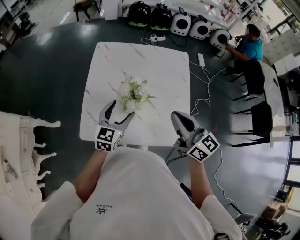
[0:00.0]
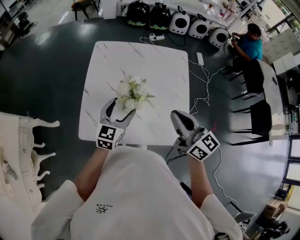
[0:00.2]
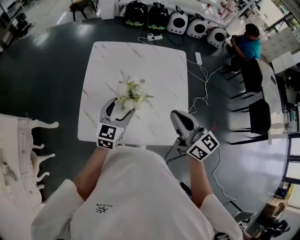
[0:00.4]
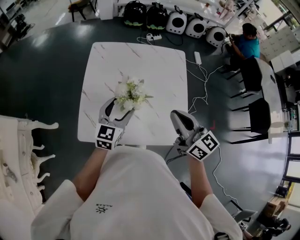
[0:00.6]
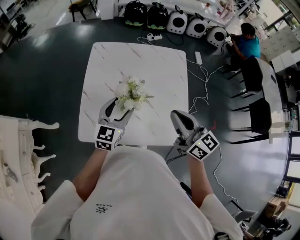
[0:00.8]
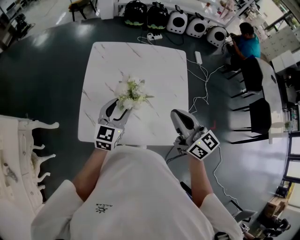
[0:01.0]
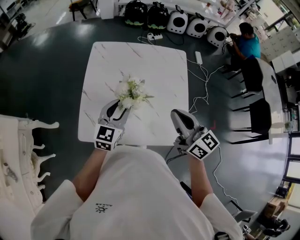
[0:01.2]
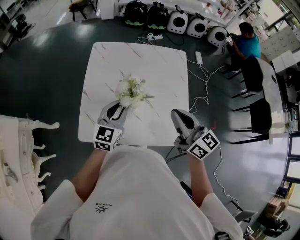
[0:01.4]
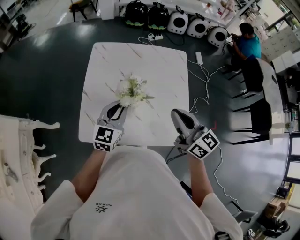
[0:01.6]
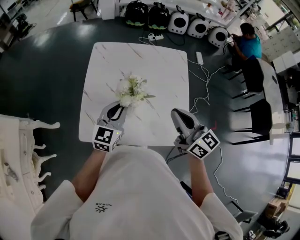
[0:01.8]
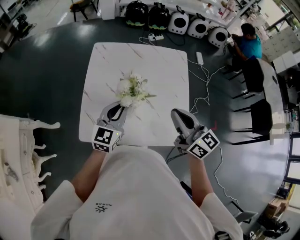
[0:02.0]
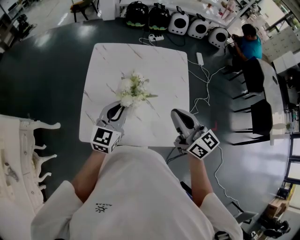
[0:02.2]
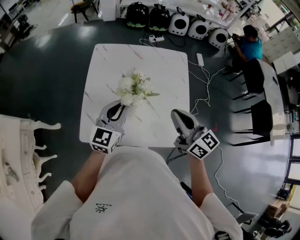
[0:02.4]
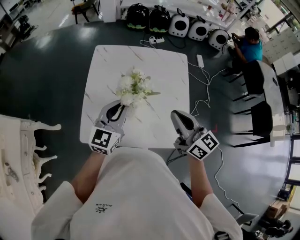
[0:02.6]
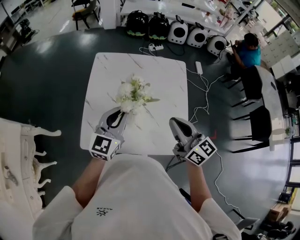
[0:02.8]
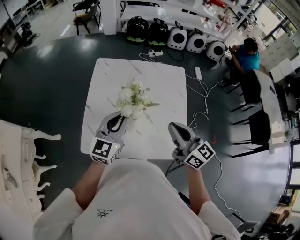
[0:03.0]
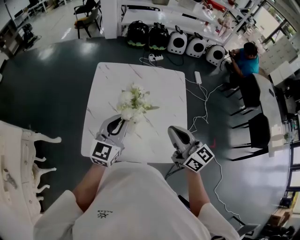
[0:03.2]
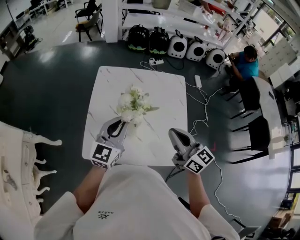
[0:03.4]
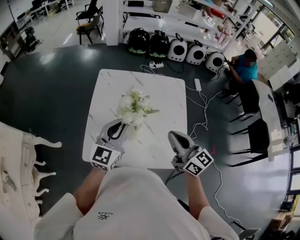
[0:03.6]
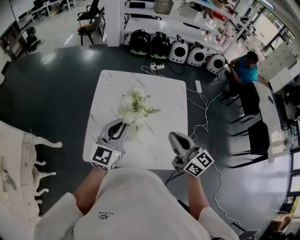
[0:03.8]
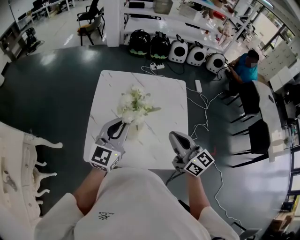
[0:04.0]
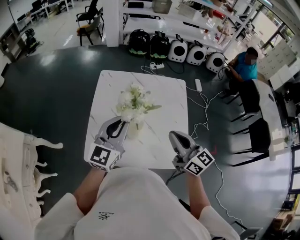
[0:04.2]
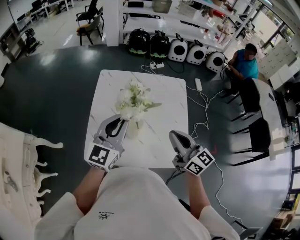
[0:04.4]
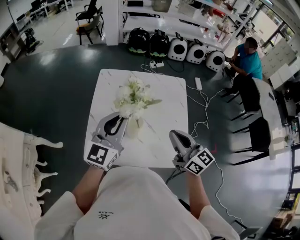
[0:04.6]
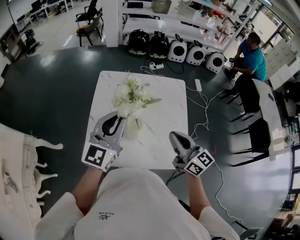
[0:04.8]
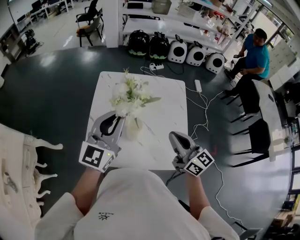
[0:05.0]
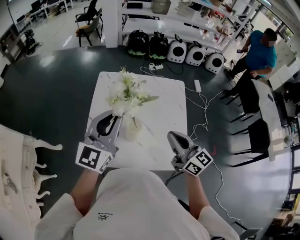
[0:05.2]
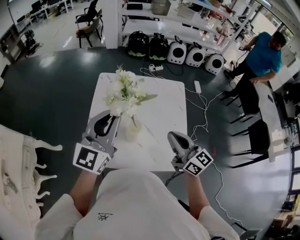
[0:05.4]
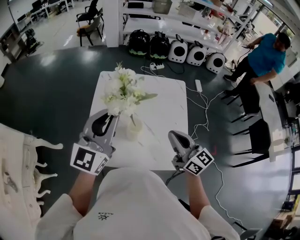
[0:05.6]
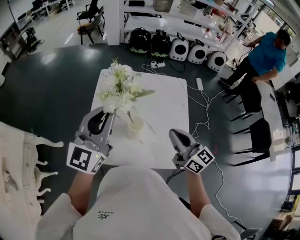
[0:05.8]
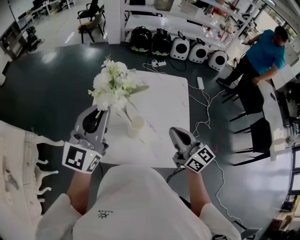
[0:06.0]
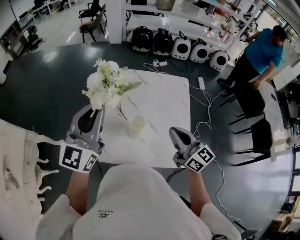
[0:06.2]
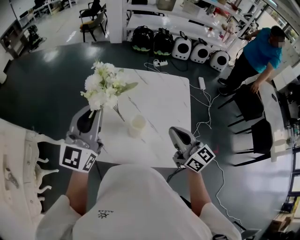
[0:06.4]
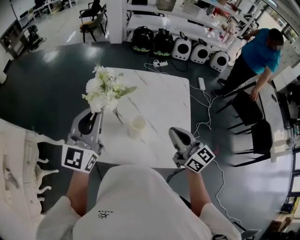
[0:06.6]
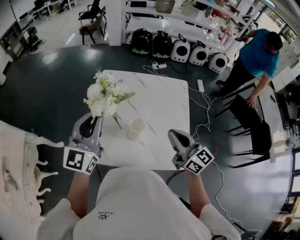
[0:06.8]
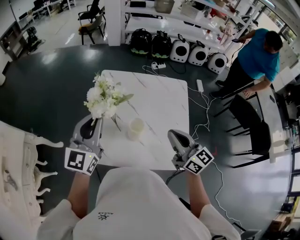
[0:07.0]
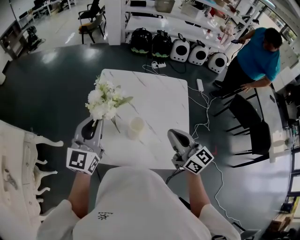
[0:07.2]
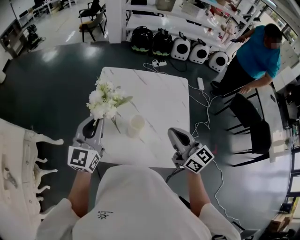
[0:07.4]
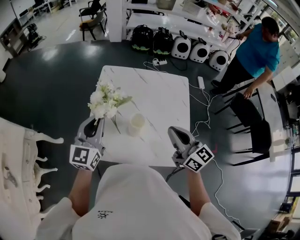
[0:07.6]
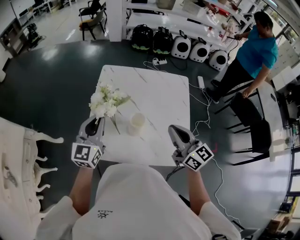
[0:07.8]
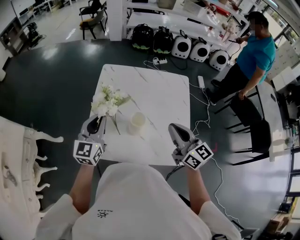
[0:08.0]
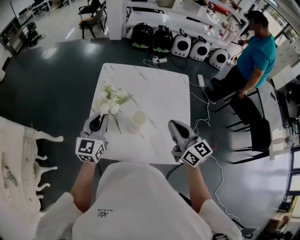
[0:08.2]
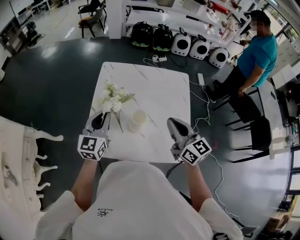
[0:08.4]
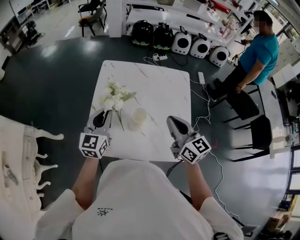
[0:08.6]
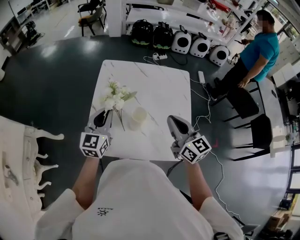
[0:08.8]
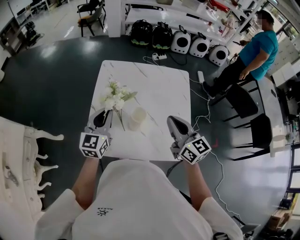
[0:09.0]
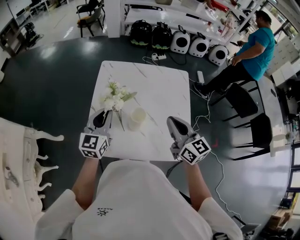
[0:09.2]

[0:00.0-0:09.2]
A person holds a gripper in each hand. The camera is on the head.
0:00.0 to 0:01.6: The left gripper closes up.
0:01.6 to 0:03.0: The left gripper moves upward, roughly 5 cm.
0:03.0 to 0:04.6: The left gripper heads upward, covering about 10 cm.
0:04.6 to 0:06.2: The left gripper shifts some 10 cm to the left and upward.
0:06.2 to 0:07.6: The left gripper is displaced downward by about 10 cm.
0:07.6 to 0:09.2: The left gripper travels downward by some 5 cm.

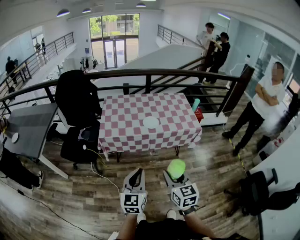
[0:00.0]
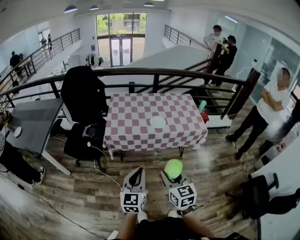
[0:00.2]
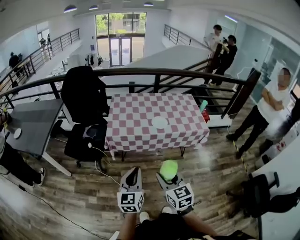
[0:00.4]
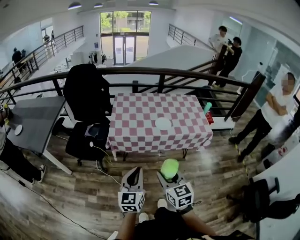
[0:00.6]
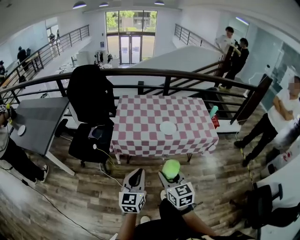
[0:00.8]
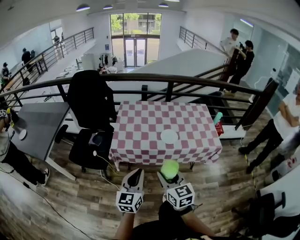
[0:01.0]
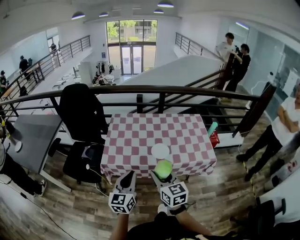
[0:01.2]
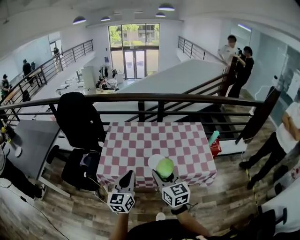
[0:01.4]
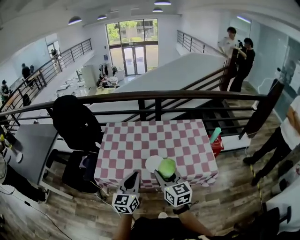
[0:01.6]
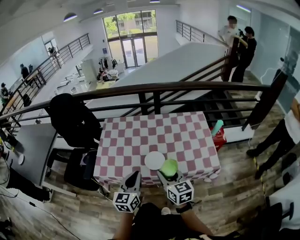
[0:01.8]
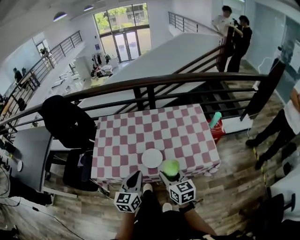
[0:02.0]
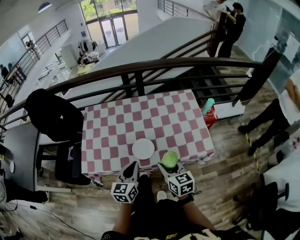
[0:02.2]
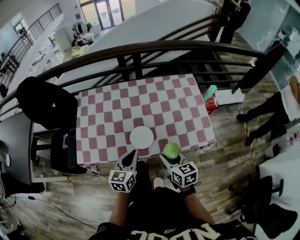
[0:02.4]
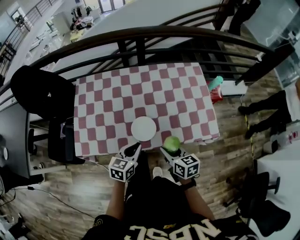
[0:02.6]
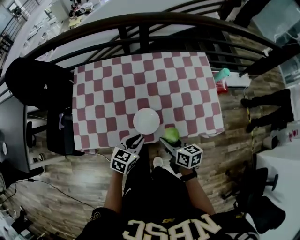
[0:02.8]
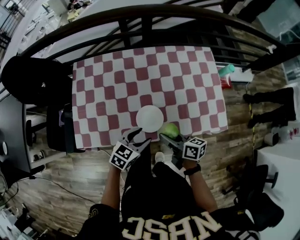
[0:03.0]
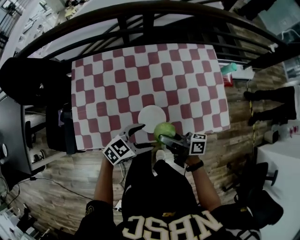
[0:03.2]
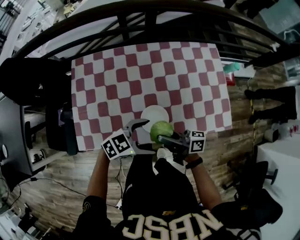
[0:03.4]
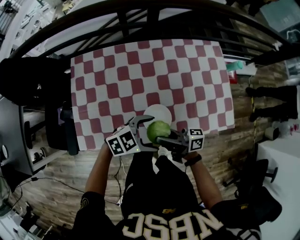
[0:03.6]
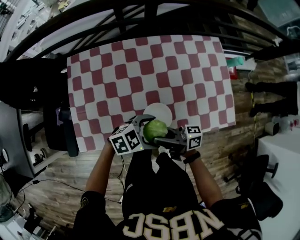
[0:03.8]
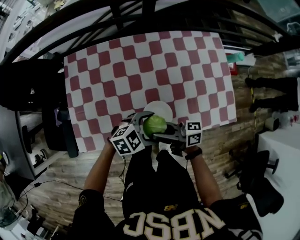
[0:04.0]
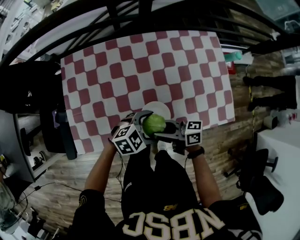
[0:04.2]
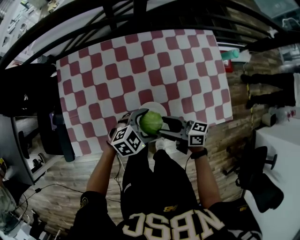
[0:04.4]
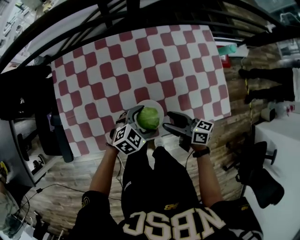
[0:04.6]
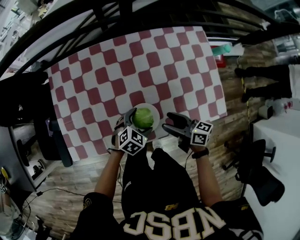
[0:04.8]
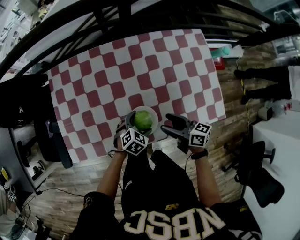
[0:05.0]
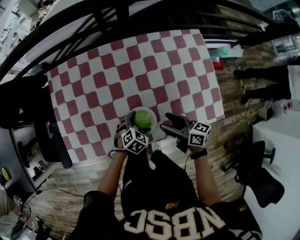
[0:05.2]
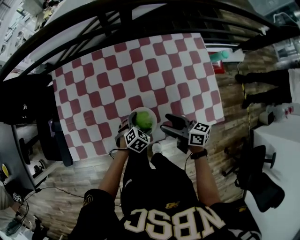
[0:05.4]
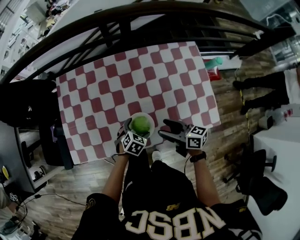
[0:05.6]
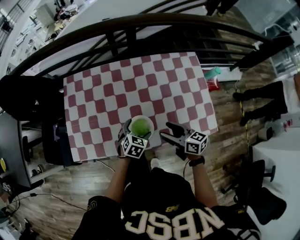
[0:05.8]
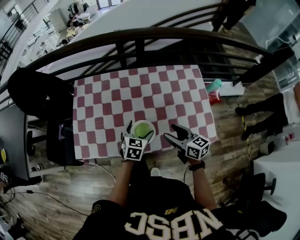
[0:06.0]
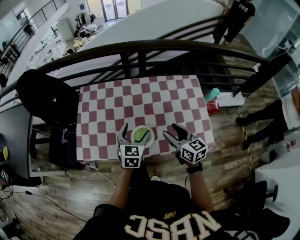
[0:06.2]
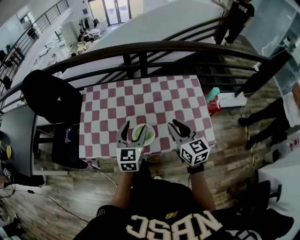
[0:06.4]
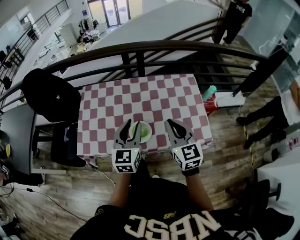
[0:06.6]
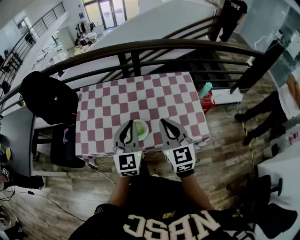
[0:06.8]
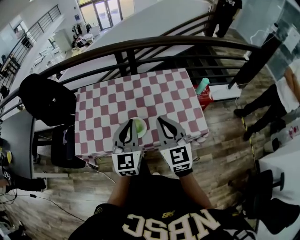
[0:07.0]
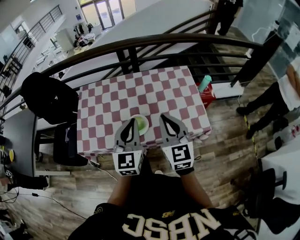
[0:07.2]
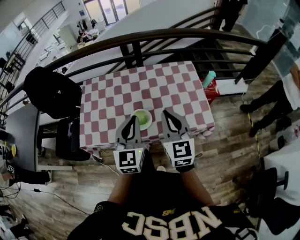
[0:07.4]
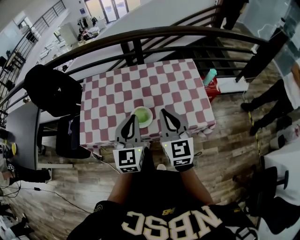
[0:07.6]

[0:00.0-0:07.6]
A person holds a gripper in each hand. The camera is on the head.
0:00.0 to 0:01.6: The grippers both shift forward by some 35 cm.
0:01.6 to 0:03.0: Both grippers move downward and forward, roughly 25 cm. The right gripper rotates around the line of its fingers by approximately 40 degrees, clockwise from behind. Meanwhile the left gripper tilts its fingers roughly 30 degrees downward, and opens up.
0:03.0 to 0:04.6: The left gripper moves some 10 cm, turns by about 30 degrees, and opens up; the right gripper opens its fingers.
0:04.6 to 0:06.0: The right gripper moves upward and to the right, roughly 10 cm, and changes its angle by roughly 20 degrees. The left gripper shifts about 5 cm upward, and changes its angle by approximately 40 degrees.
0:06.0 to 0:07.6: The grippers both shift upward and backward by some 25 cm. The left gripper tilts its fingers about 30 degrees upward, and closes its fingers, while the right gripper changes its angle by some 40 degrees, and closes.

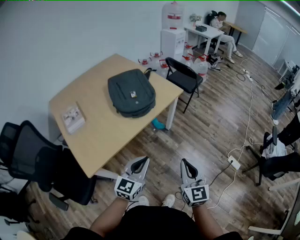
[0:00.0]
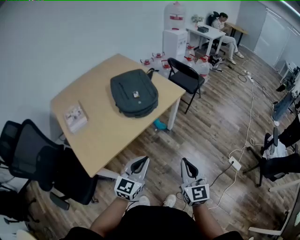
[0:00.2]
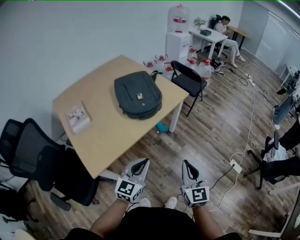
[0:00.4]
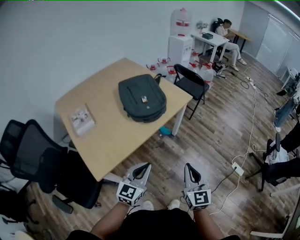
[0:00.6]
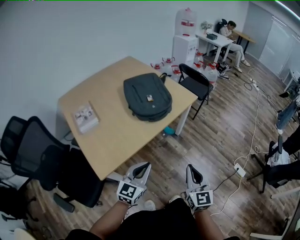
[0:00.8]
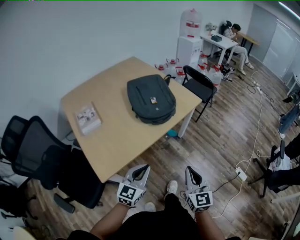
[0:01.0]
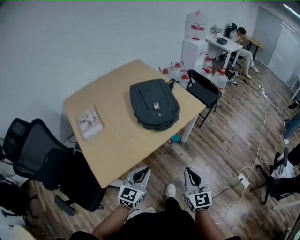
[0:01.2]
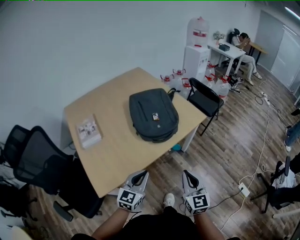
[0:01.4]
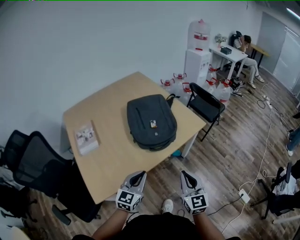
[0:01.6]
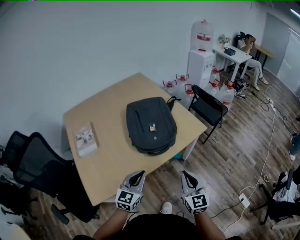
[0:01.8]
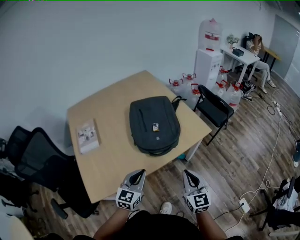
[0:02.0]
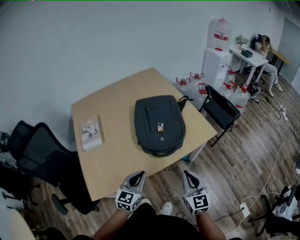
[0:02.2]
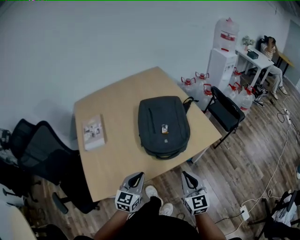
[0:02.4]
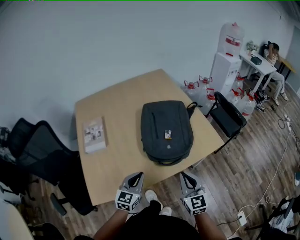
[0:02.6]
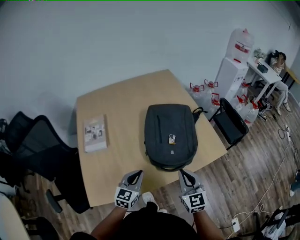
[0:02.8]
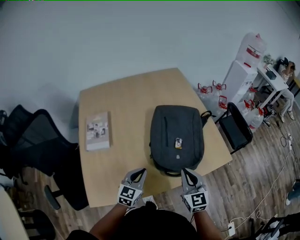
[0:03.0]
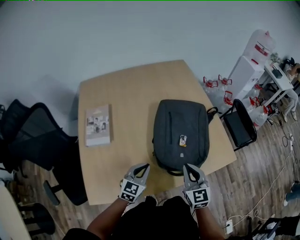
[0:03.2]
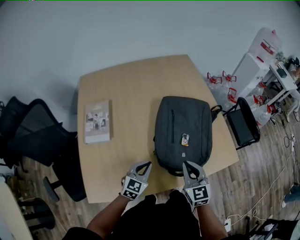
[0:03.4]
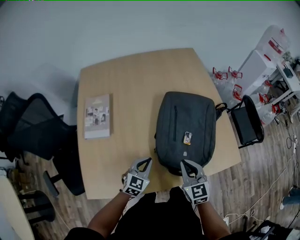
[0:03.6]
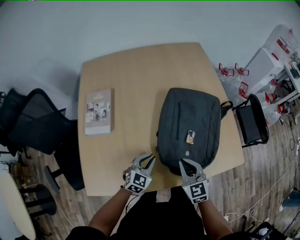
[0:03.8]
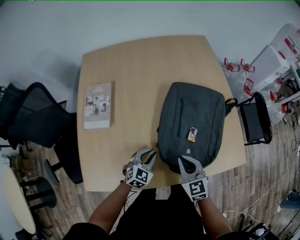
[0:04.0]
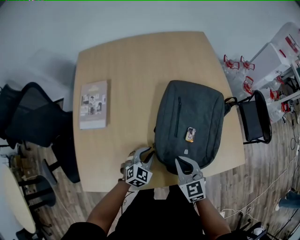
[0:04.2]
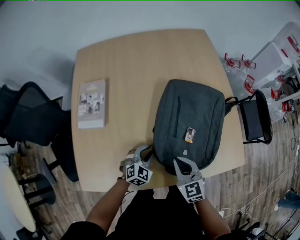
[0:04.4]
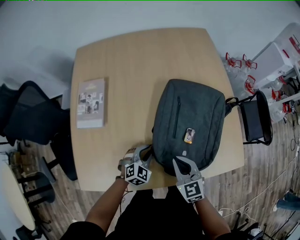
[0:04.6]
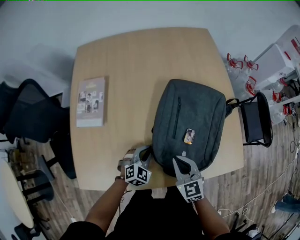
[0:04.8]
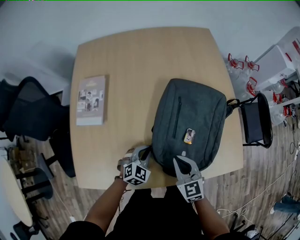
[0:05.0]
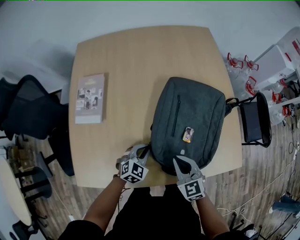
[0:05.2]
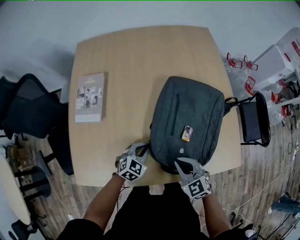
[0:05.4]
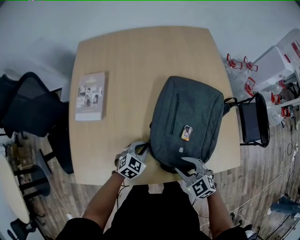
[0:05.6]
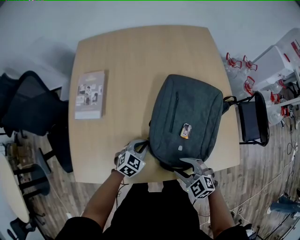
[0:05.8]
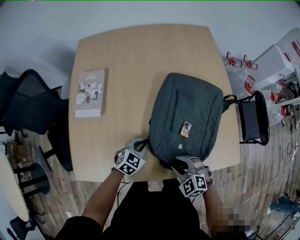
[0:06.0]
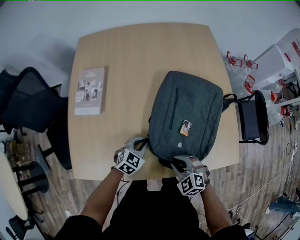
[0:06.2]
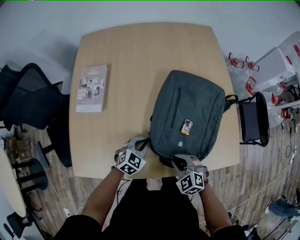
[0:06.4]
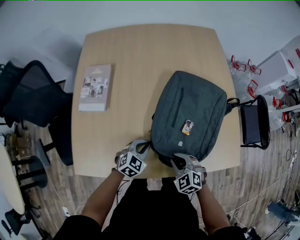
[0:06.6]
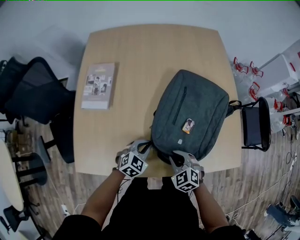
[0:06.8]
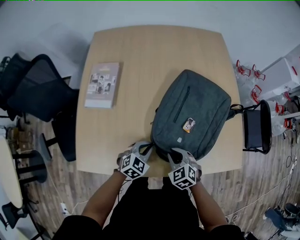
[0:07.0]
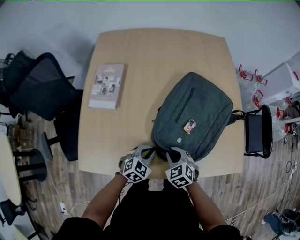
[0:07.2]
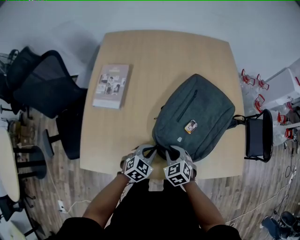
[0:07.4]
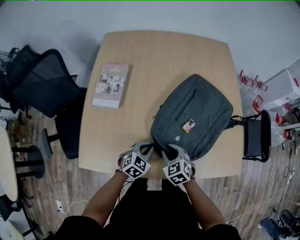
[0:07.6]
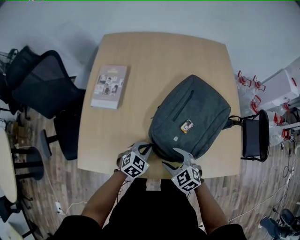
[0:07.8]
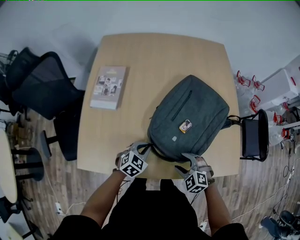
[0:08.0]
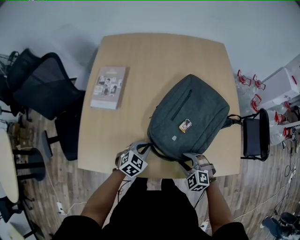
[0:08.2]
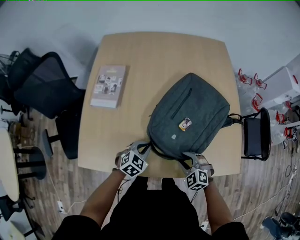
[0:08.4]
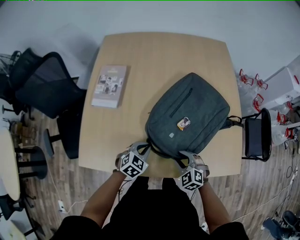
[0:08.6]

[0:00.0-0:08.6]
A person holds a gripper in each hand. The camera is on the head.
0:00.0 to 0:01.4: The left gripper heads to the left and forward, covering approximately 15 cm; the right gripper goes about 15 cm forward and to the left.
0:01.4 to 0:02.8: The grippers both shift forward by about 20 cm. The left gripper turns by about 20 degrees, while the right gripper rotates some 20 degrees.
0:02.8 to 0:04.4: The left gripper travels downward and forward by roughly 20 cm, changes its angle by some 30 degrees, and opens. The right gripper goes roughly 15 cm forward, downward and to the left, and swivels about 30 degrees.
0:04.4 to 0:05.8: The right gripper goes about 5 cm backward, changes its angle by approximately 40 degrees, and opens, while the left gripper closes up.
0:05.8 to 0:07.2: The left gripper goes roughly 5 cm backward. The right gripper goes some 10 cm to the left and forward, and closes up.
0:07.2 to 0:08.6: The right gripper goes roughly 5 cm to the right, and opens, then closes once more.
